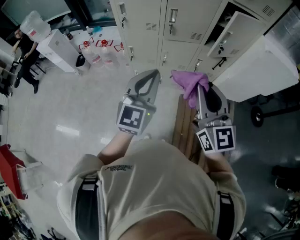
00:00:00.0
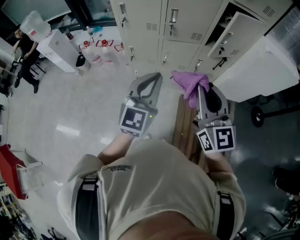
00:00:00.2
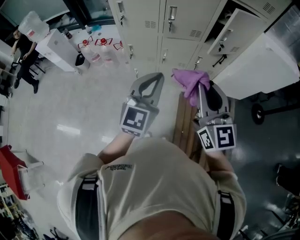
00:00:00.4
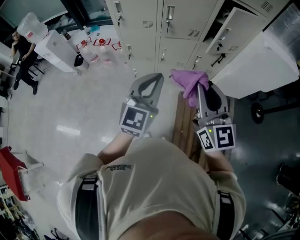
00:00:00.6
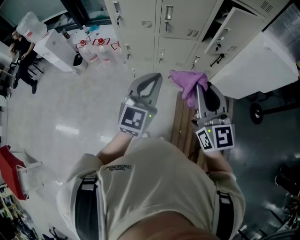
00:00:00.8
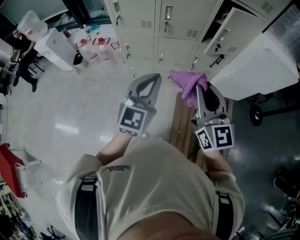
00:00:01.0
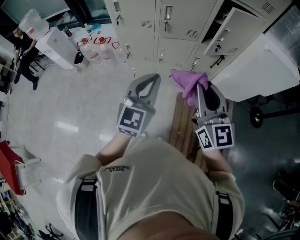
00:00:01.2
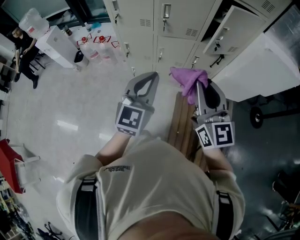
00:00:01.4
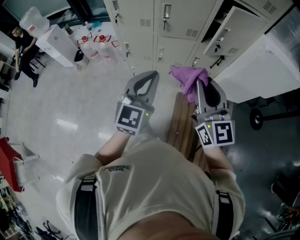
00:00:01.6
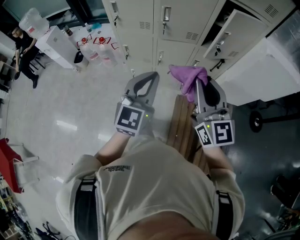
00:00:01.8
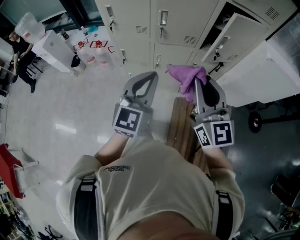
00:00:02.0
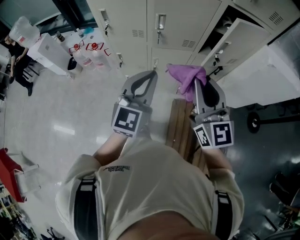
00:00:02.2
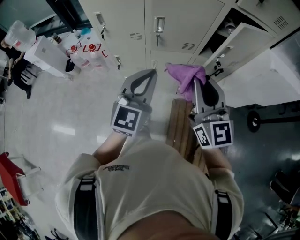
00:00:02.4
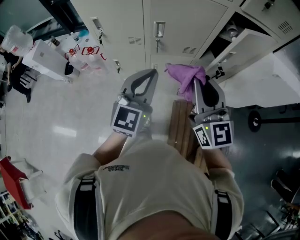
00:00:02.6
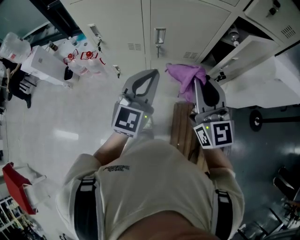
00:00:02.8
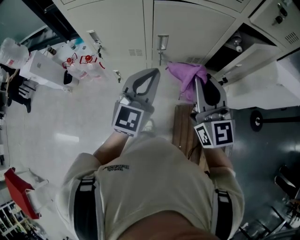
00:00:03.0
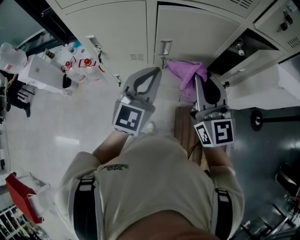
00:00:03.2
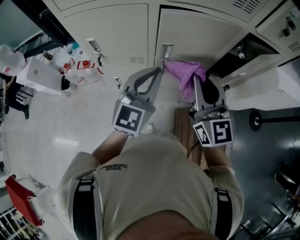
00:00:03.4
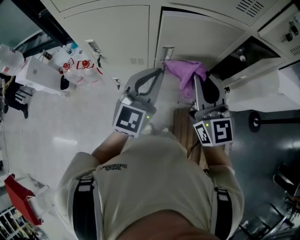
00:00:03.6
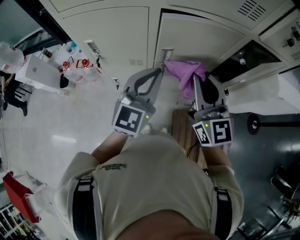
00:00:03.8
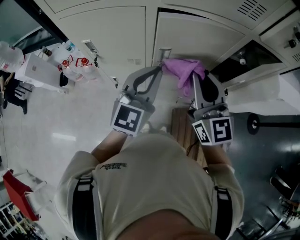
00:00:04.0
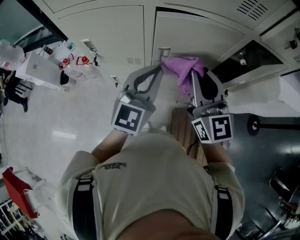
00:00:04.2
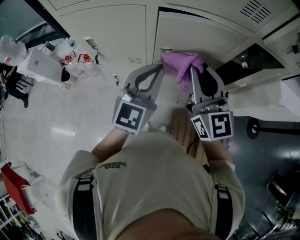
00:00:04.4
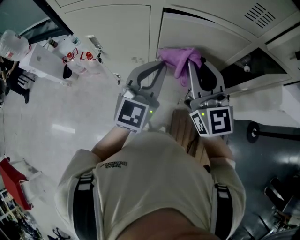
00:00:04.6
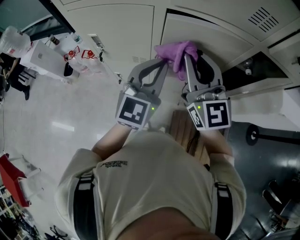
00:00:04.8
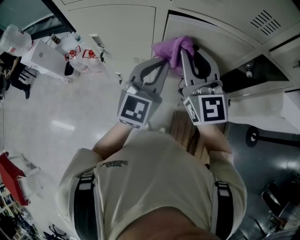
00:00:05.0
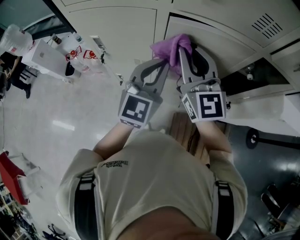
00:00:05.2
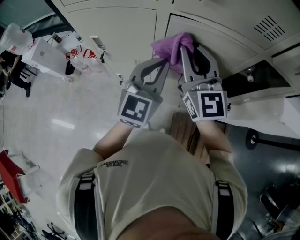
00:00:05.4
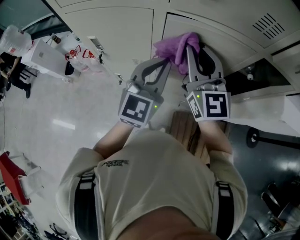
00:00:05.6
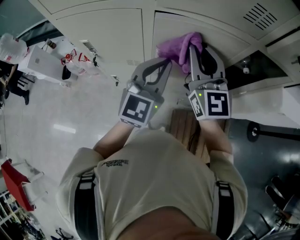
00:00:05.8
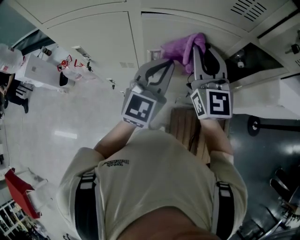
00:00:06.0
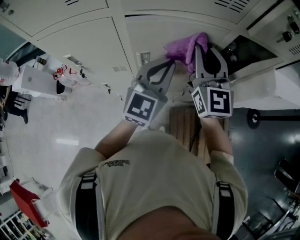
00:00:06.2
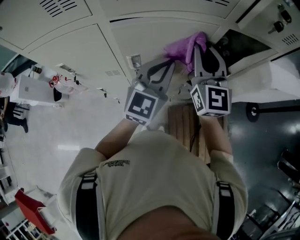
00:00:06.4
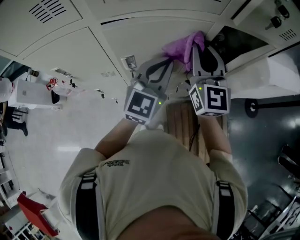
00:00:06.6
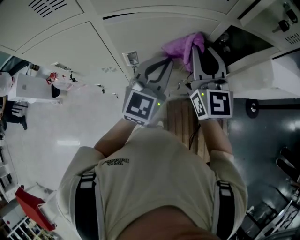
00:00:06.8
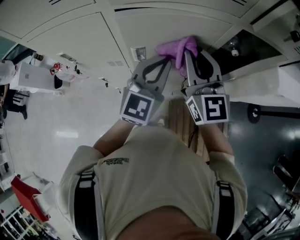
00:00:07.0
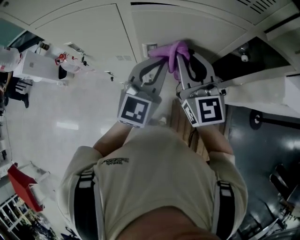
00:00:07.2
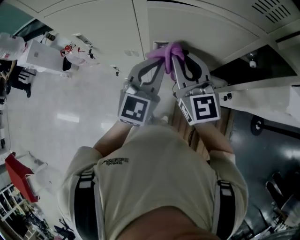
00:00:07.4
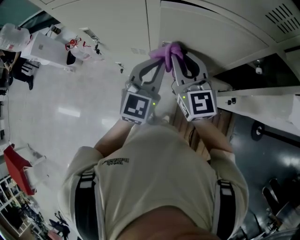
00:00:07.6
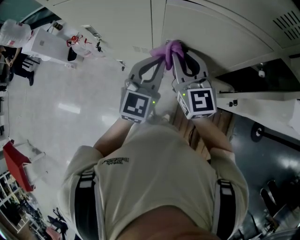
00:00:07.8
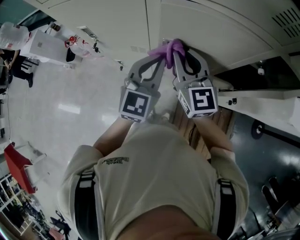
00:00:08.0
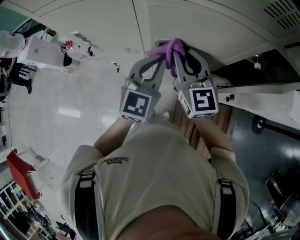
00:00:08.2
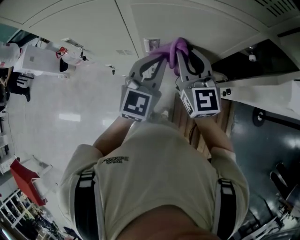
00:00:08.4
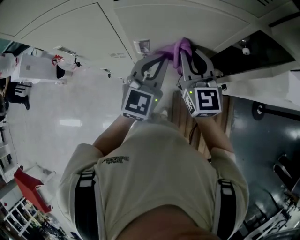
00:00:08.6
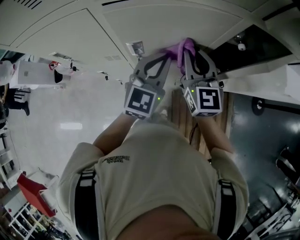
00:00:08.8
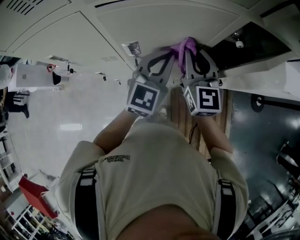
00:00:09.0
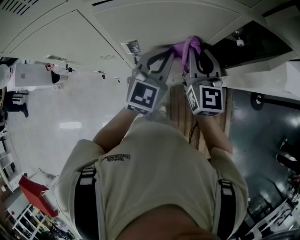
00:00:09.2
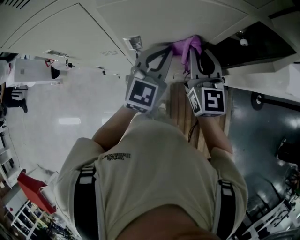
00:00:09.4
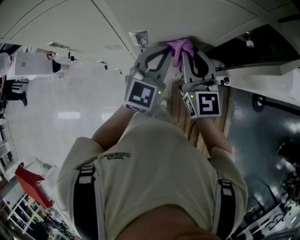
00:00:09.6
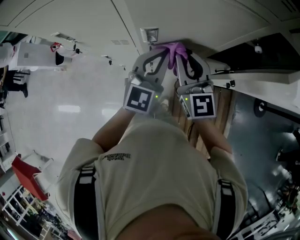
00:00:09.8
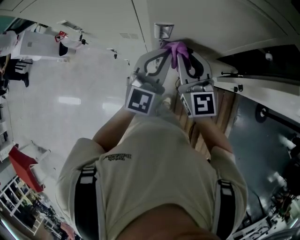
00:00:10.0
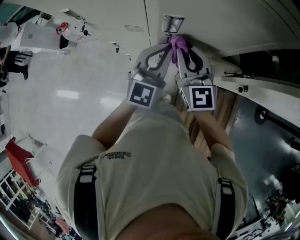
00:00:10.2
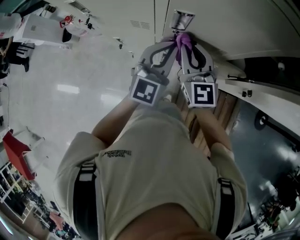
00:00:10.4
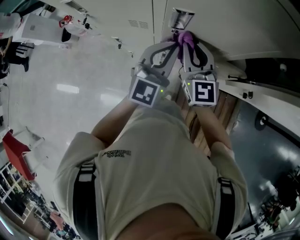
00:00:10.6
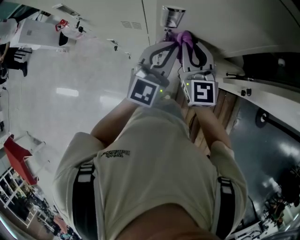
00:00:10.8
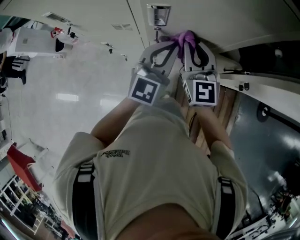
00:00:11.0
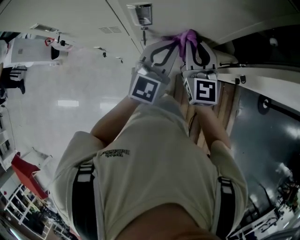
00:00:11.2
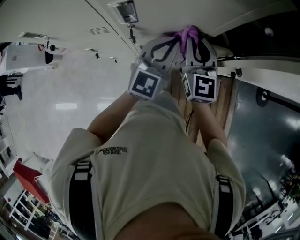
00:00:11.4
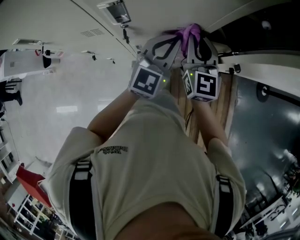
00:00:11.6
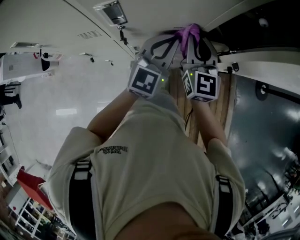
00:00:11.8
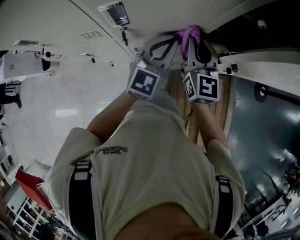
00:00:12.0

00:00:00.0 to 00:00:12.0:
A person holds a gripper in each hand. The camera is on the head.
00:00:00.0 to 00:00:01.6: The two grippers go some 5 cm to the right.
00:00:01.6 to 00:00:03.0: The grippers both shift forward by roughly 25 cm.
00:00:03.0 to 00:00:04.4: The grippers both shift forward by some 10 cm.
00:00:04.4 to 00:00:06.0: The left gripper is displaced to the right by roughly 5 cm, while the right gripper shifts roughly 10 cm forward.
00:00:06.0 to 00:00:07.6: Both grippers move downward and to the left, approximately 10 cm.
00:00:07.6 to 00:00:09.0: Both grippers travel together to the right, approximately 15 cm. The right gripper turns by approximately 20 degrees.
00:00:09.0 to 00:00:10.4: Both grippers move to the left and downward, roughly 15 cm.
00:00:10.4 to 00:00:12.0: The two grippers go approximately 15 cm to the right. The right gripper turns by approximately 20 degrees.

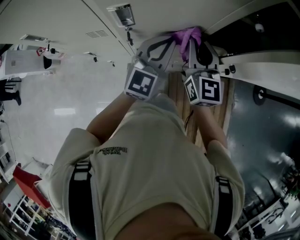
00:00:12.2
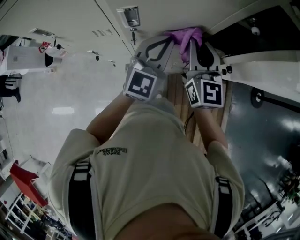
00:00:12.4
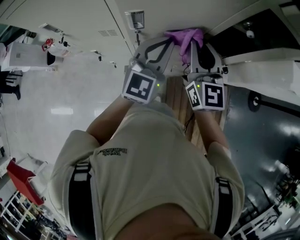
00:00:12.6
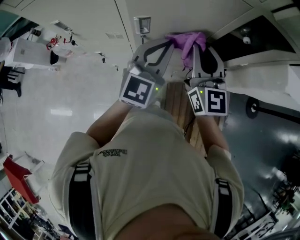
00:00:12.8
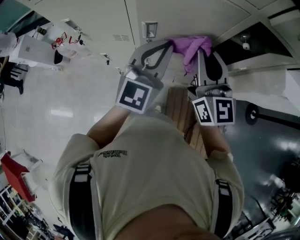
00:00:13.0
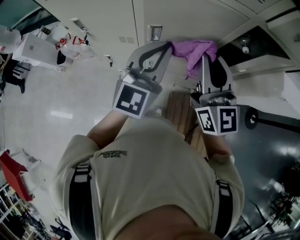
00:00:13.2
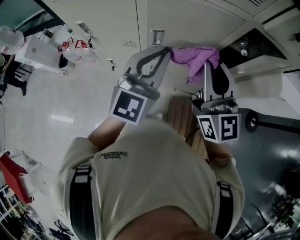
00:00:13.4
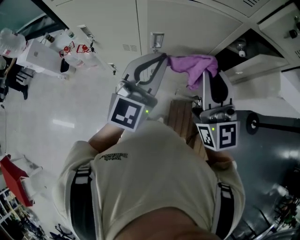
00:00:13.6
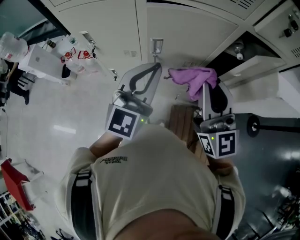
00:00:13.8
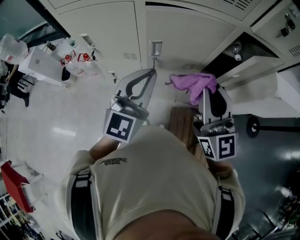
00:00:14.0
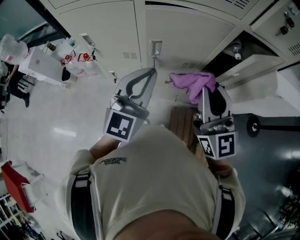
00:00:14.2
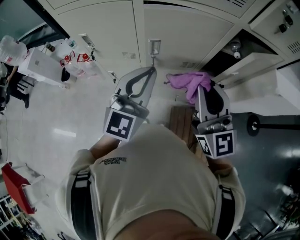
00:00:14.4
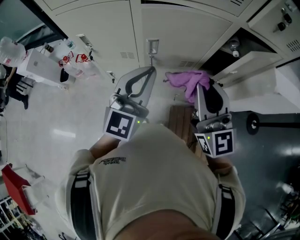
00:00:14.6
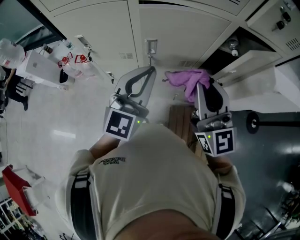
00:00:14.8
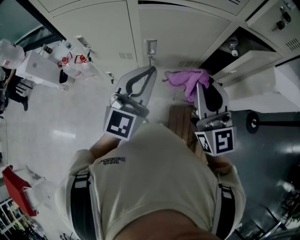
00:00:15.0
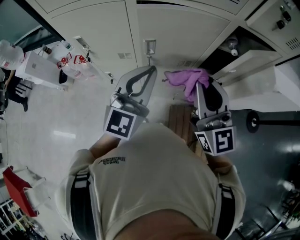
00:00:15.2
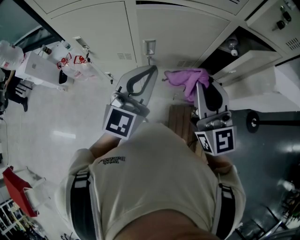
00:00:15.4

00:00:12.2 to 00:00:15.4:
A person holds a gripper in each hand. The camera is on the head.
00:00:12.2 to 00:00:13.8: The left gripper is displaced upward, backward and to the left by some 25 cm, while the right gripper shifts approximately 25 cm upward and backward, and swivels roughly 20 degrees.
00:00:13.8 to 00:00:15.4: The grippers stay close to where they were, moving slightly.

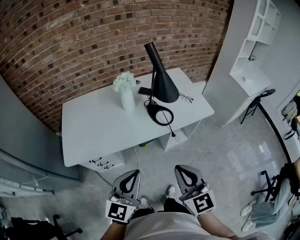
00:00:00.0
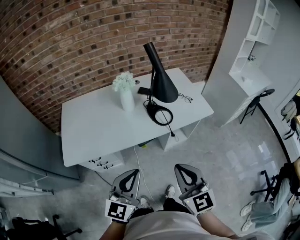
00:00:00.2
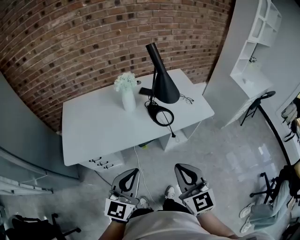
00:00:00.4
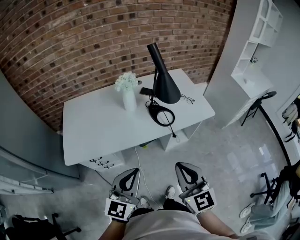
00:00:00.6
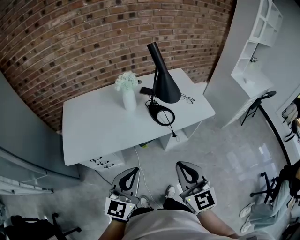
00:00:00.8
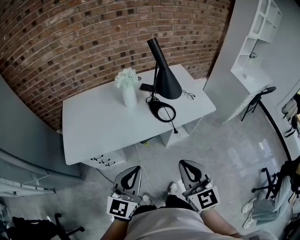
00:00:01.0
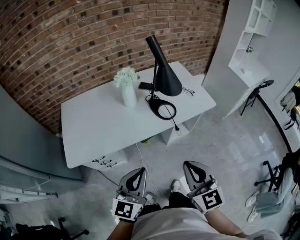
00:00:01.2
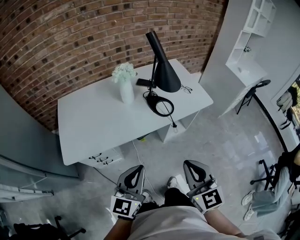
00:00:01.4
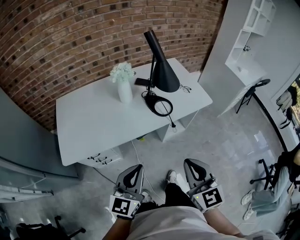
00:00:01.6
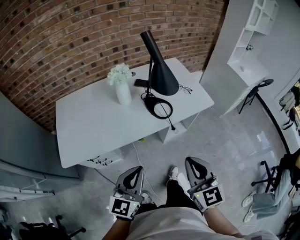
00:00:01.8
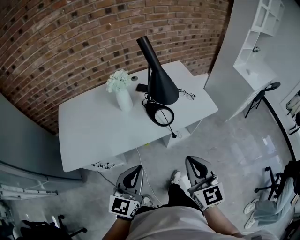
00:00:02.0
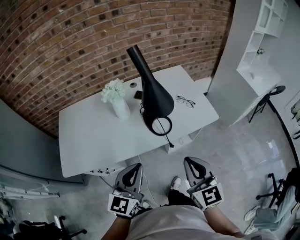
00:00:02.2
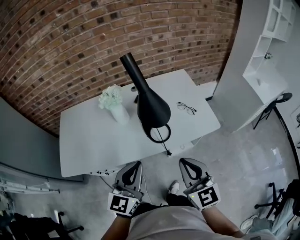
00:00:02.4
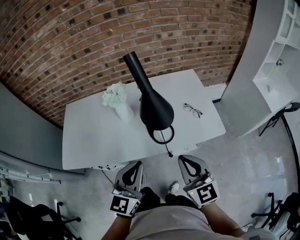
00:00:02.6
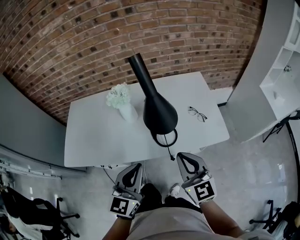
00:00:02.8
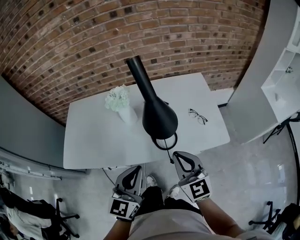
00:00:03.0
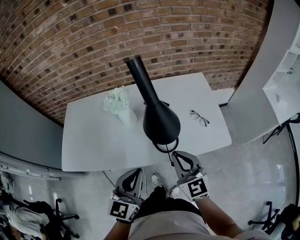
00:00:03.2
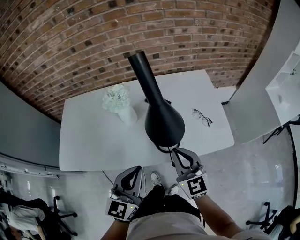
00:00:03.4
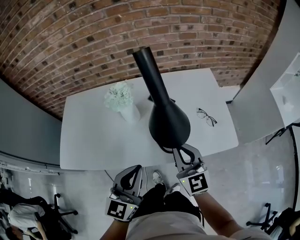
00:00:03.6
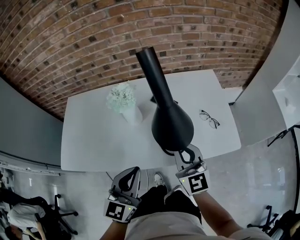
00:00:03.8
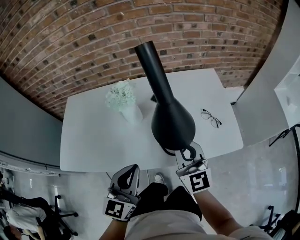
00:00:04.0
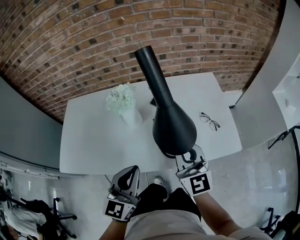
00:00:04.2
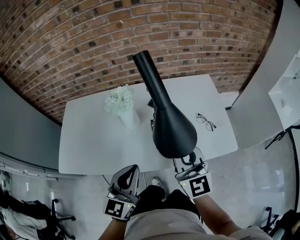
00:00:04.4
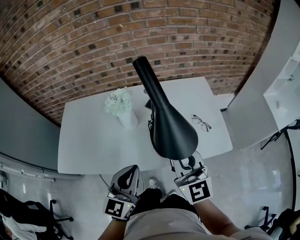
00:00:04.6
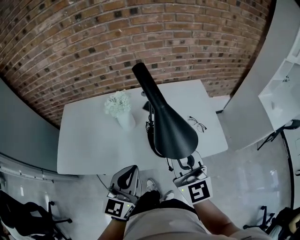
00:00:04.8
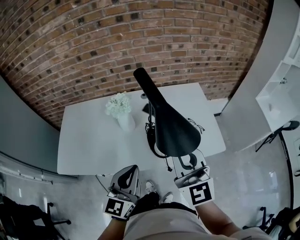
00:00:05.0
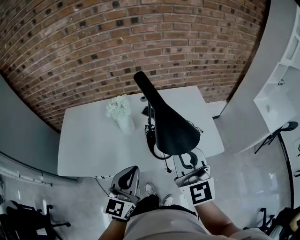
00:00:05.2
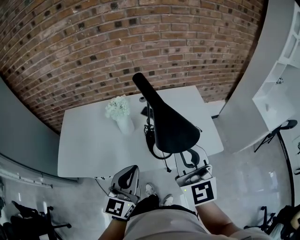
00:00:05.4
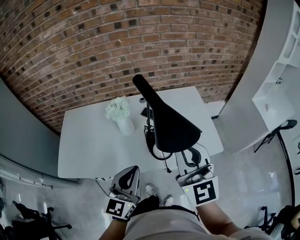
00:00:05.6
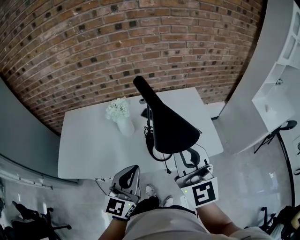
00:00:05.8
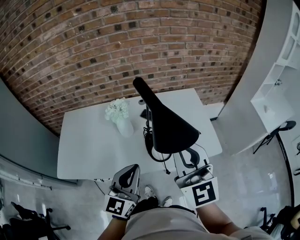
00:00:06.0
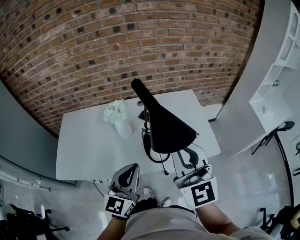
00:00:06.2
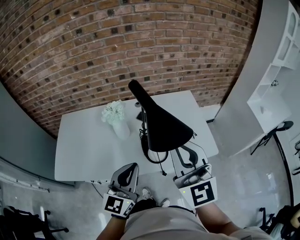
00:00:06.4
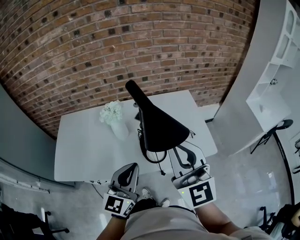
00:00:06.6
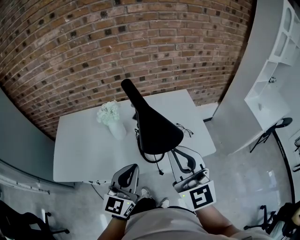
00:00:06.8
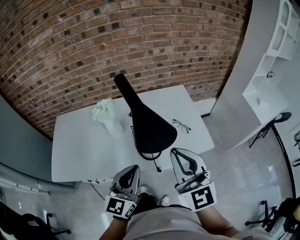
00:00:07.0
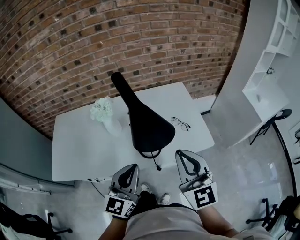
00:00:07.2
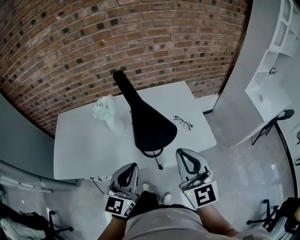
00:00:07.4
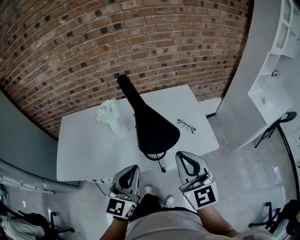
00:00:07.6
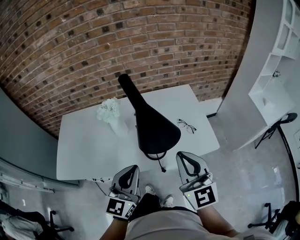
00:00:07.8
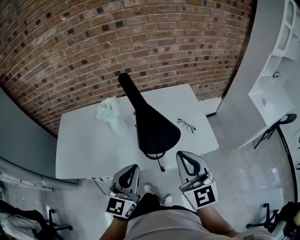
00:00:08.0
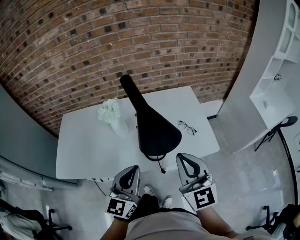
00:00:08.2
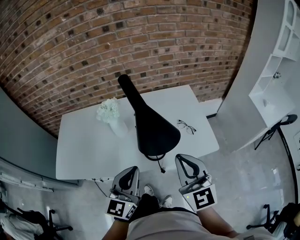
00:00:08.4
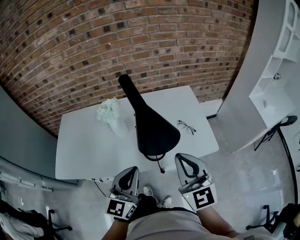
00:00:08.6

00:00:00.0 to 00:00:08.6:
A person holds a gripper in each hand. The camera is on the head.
00:00:00.0 to 00:00:01.4: The grippers make only small movements.
00:00:01.4 to 00:00:02.8: Both grippers move forward and to the right, some 25 cm. The right gripper swivels about 20 degrees.
00:00:02.8 to 00:00:04.4: The left gripper goes about 5 cm forward, while the right gripper shifts about 10 cm forward.
00:00:04.4 to 00:00:05.8: The right gripper moves upward, some 15 cm; the left gripper heads upward, covering some 5 cm.
00:00:05.8 to 00:00:07.2: The left gripper goes roughly 5 cm to the right. The right gripper is displaced to the right and downward by approximately 10 cm.
00:00:07.2 to 00:00:08.6: The grippers make only small movements.
